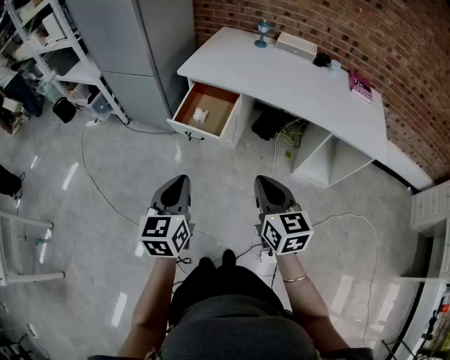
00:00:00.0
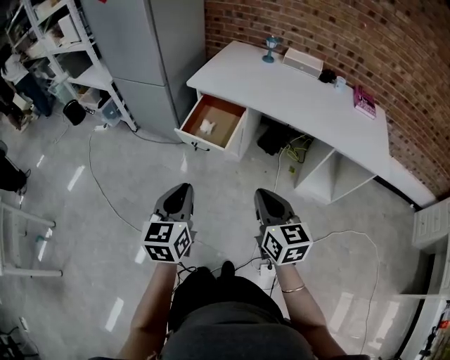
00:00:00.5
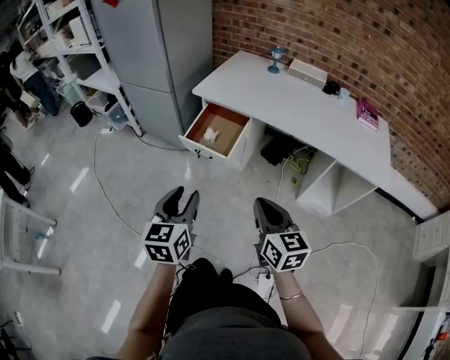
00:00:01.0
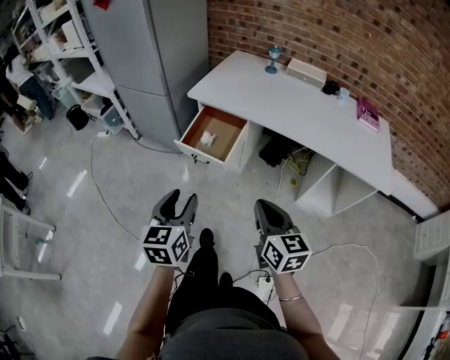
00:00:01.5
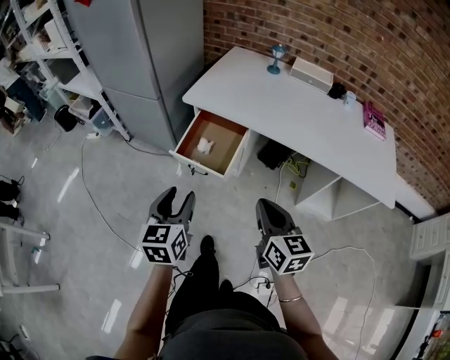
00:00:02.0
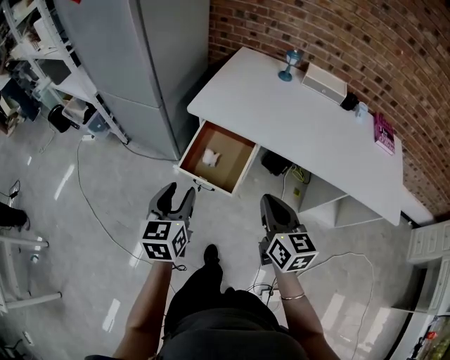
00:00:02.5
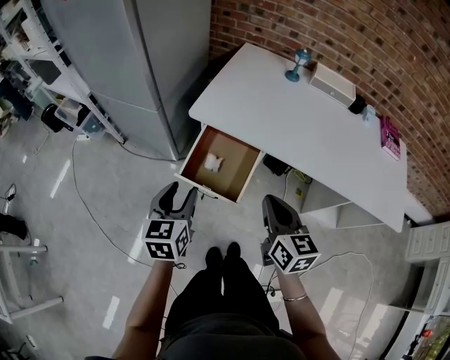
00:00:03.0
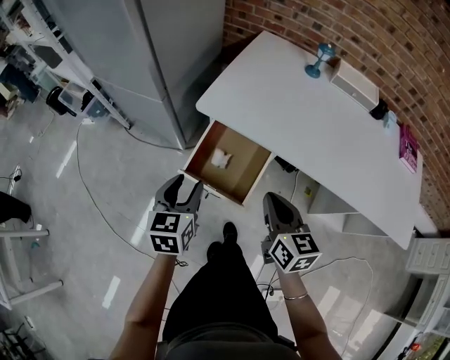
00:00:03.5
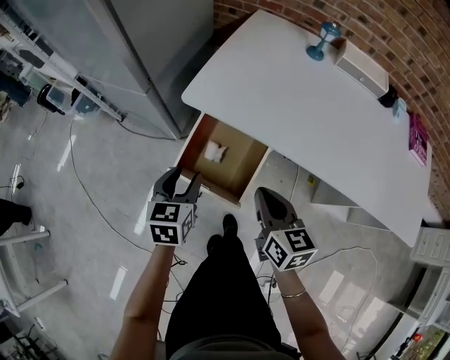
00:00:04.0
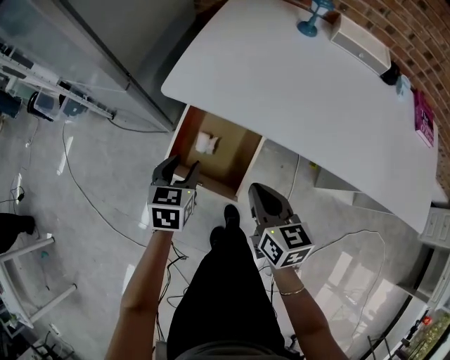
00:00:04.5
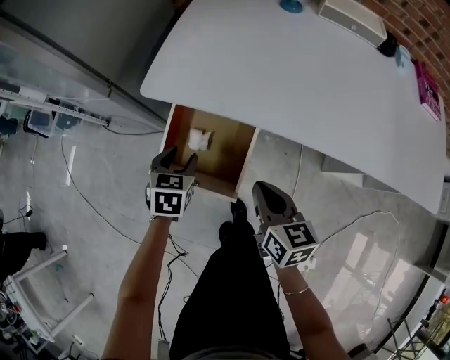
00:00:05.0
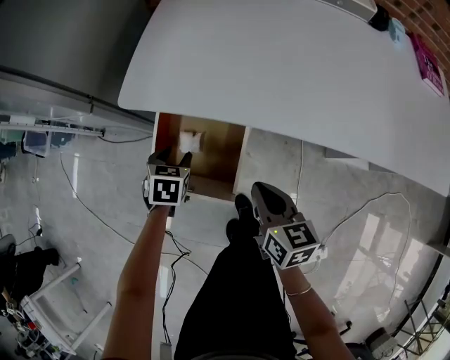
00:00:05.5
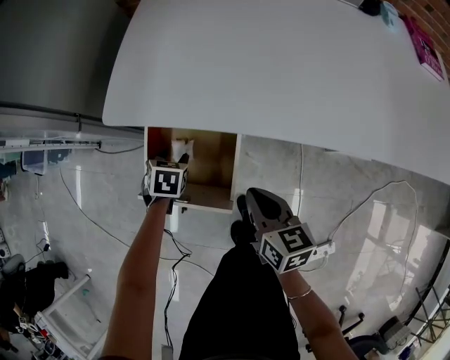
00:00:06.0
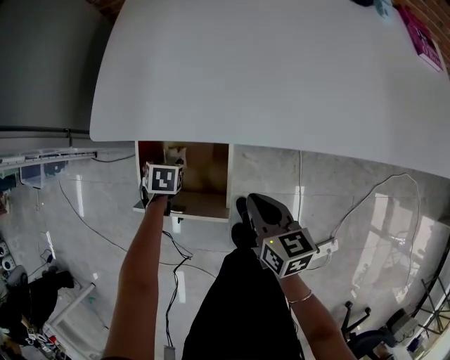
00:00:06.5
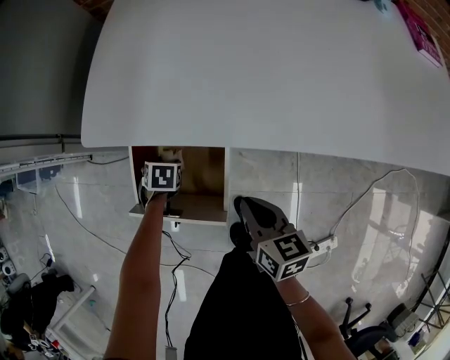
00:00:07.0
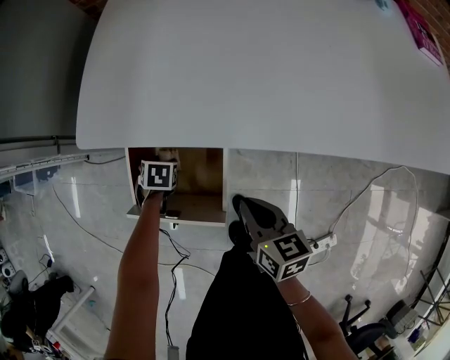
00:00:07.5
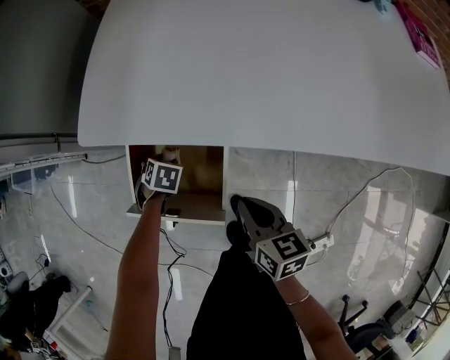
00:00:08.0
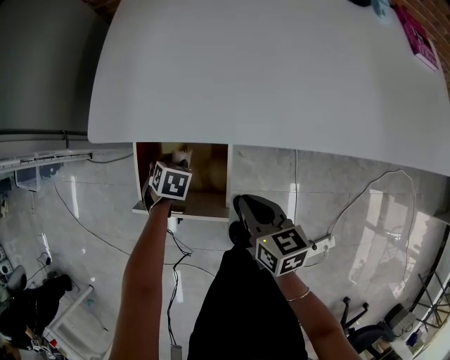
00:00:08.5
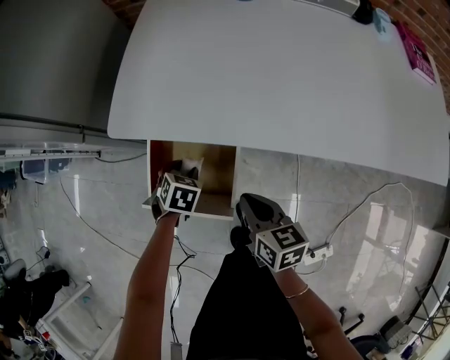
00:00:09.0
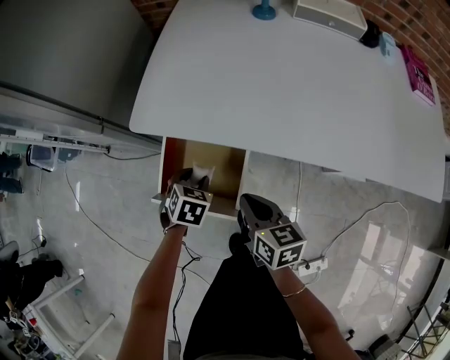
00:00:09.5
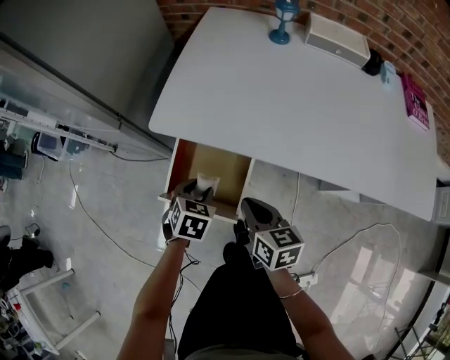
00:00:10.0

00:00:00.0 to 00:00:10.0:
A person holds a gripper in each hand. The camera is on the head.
00:00:00.0 to 00:00:02.0: The grippers both shift forward by approximately 10 cm. The left gripper opens.
00:00:02.0 to 00:00:04.0: The right gripper heads forward, covering roughly 25 cm, while the left gripper travels forward and downward by approximately 30 cm.
00:00:04.0 to 00:00:06.0: The left gripper moves downward and forward, approximately 25 cm, and tilts its fingers some 30 degrees downward; the right gripper goes some 15 cm downward.
00:00:06.0 to 00:00:08.0: The left gripper moves downward, some 10 cm.
00:00:08.0 to 00:00:10.0: The right gripper heads upward, covering about 10 cm. Meanwhile the left gripper moves upward, some 20 cm, and changes its angle by roughly 20 degrees.

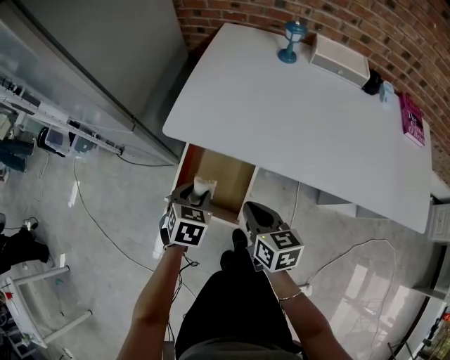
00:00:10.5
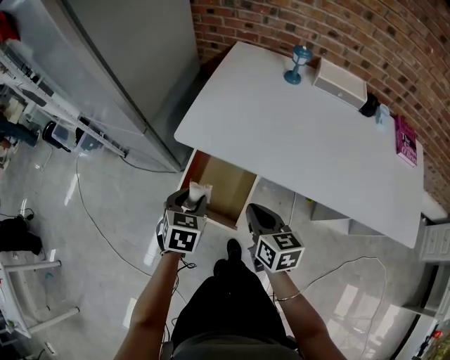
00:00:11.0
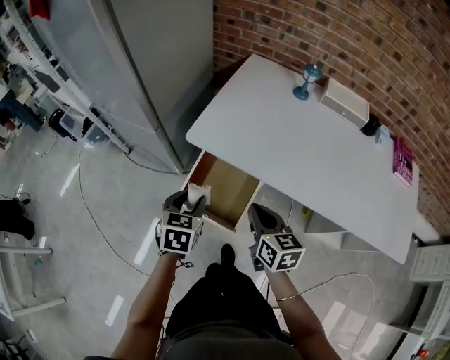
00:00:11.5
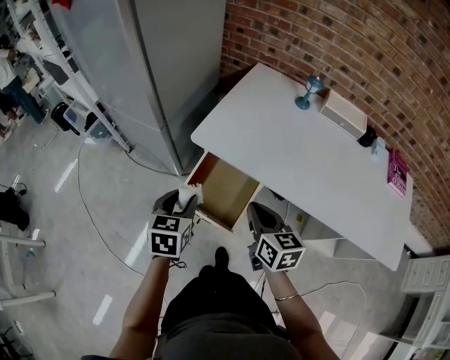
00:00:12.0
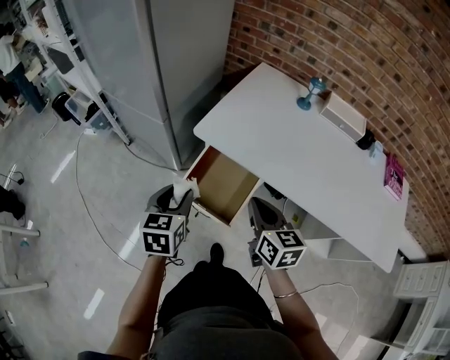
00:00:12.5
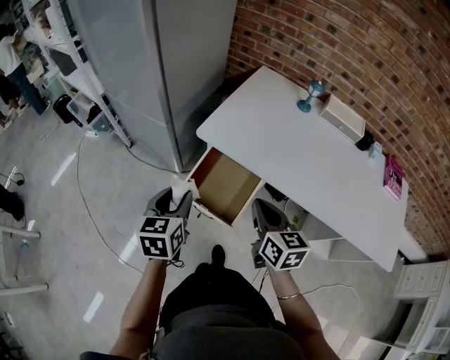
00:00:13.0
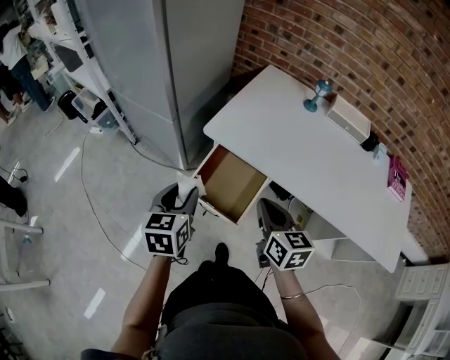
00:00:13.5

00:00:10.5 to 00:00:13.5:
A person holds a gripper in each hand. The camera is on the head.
00:00:10.5 to 00:00:12.0: The left gripper heads upward and to the left, covering some 15 cm, and swivels about 30 degrees, while the right gripper is displaced upward by some 10 cm.
00:00:12.0 to 00:00:13.5: The left gripper moves approximately 5 cm.

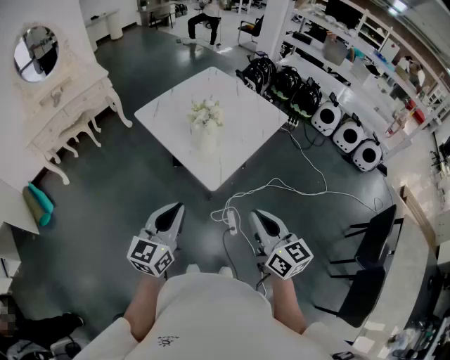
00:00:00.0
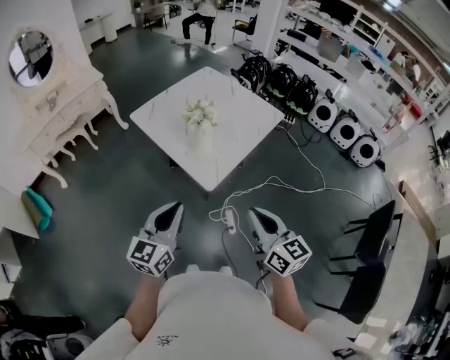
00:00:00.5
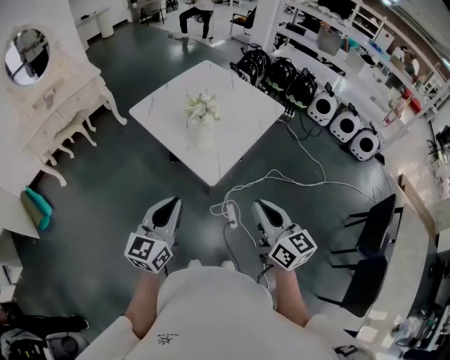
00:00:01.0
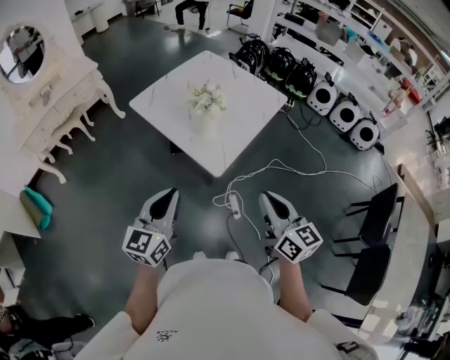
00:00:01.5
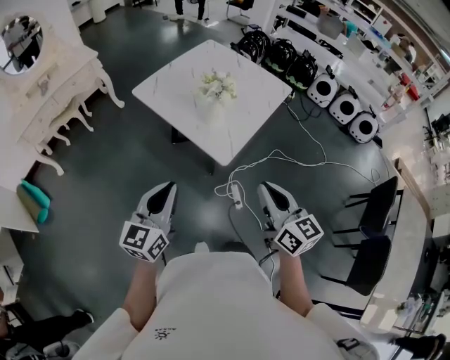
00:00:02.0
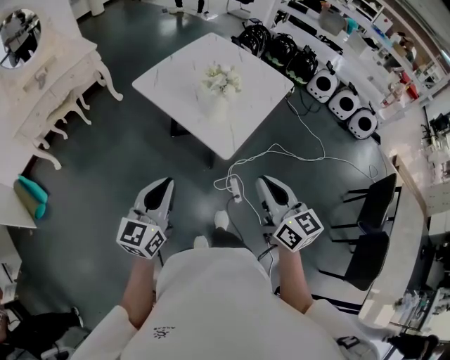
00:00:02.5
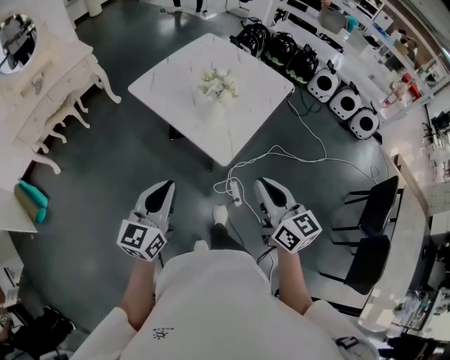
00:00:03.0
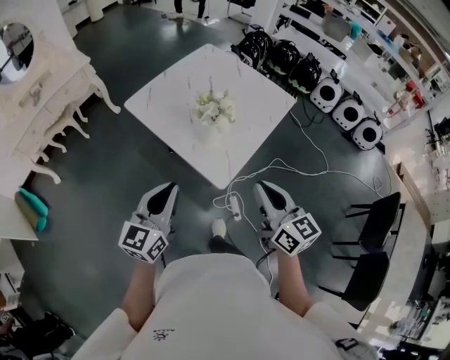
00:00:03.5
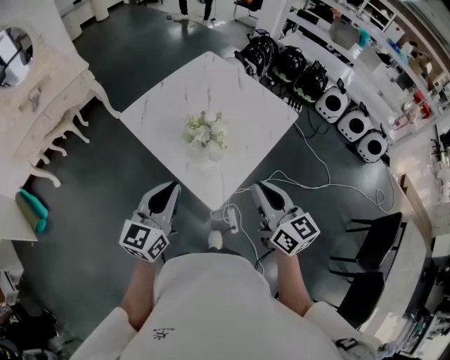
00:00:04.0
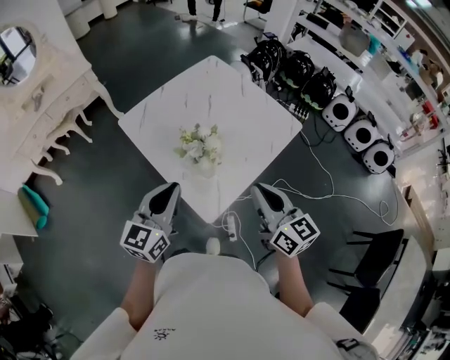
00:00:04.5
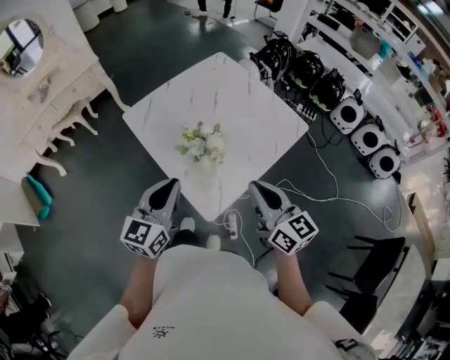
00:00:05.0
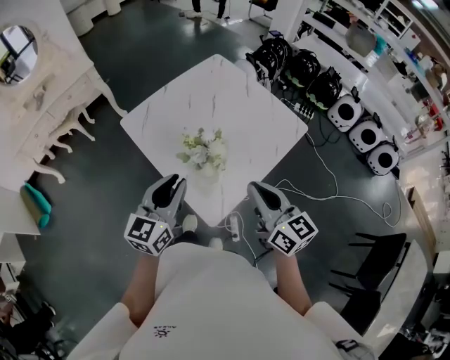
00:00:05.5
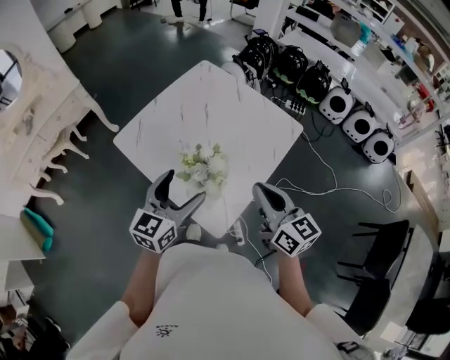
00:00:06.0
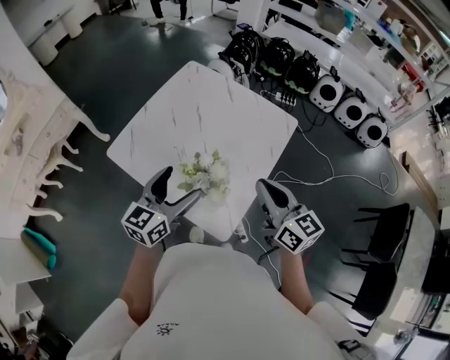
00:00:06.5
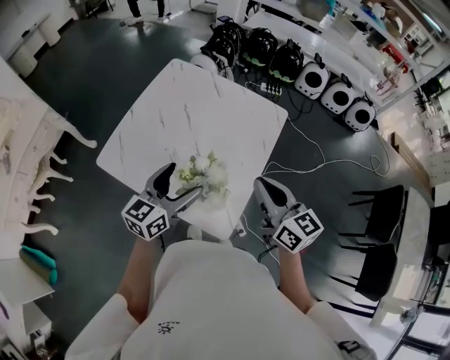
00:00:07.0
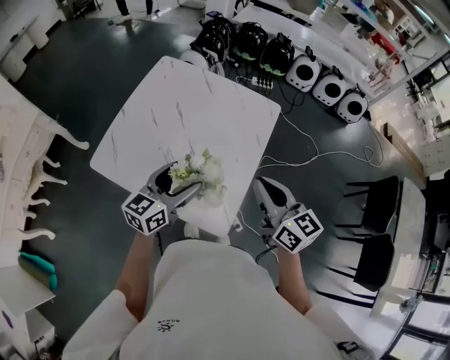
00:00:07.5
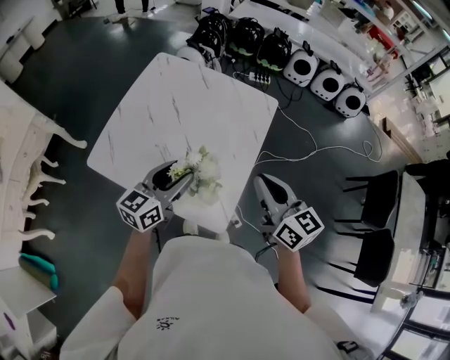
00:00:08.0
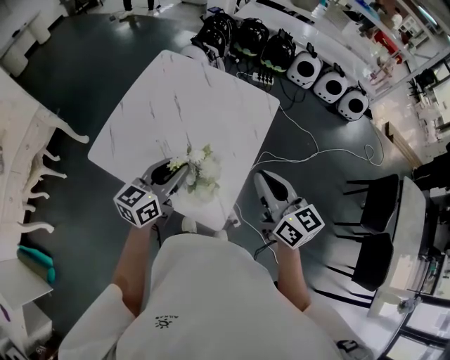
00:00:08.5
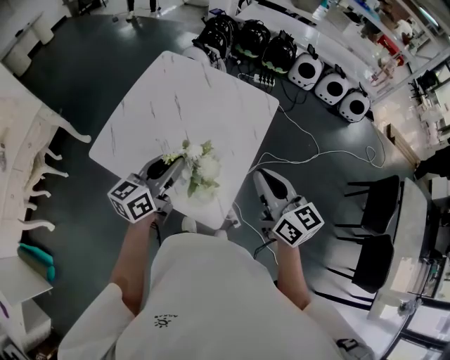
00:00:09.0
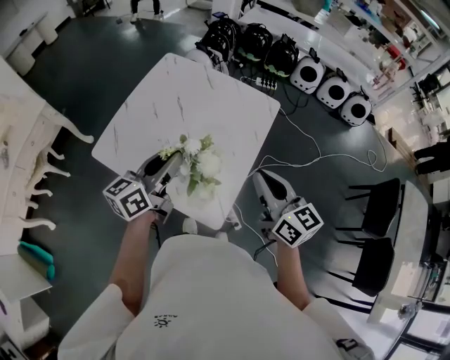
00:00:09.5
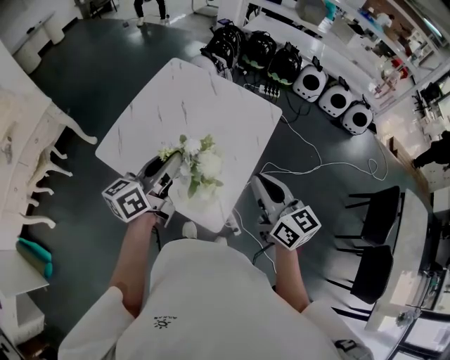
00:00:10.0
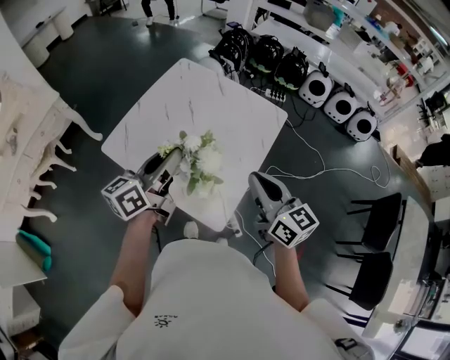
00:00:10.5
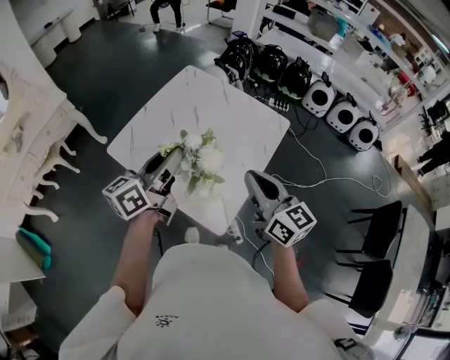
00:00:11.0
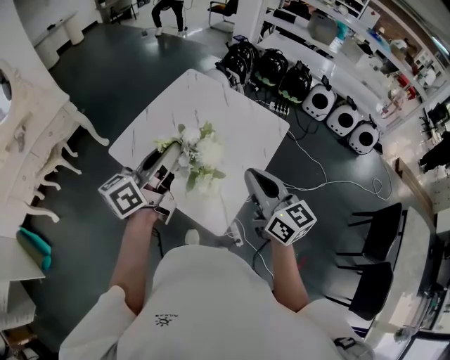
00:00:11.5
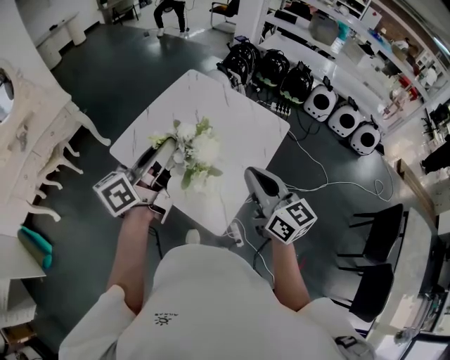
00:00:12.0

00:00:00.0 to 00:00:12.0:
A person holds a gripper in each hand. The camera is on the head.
00:00:00.0 to 00:00:02.0: The left gripper travels to the left by some 10 cm, while the right gripper is displaced to the left by approximately 5 cm.
00:00:02.0 to 00:00:04.0: The grippers both shift forward by about 20 cm.
00:00:04.0 to 00:00:06.0: The two grippers go approximately 15 cm forward. The left gripper opens.
00:00:06.0 to 00:00:08.0: The left gripper goes roughly 10 cm forward, changes its angle by approximately 30 degrees, and closes.
00:00:08.0 to 00:00:10.0: The left gripper goes about 10 cm upward, and rotates some 20 degrees.
00:00:10.0 to 00:00:12.0: The right gripper shifts by approximately 5 cm, while the left gripper moves upward, some 10 cm.

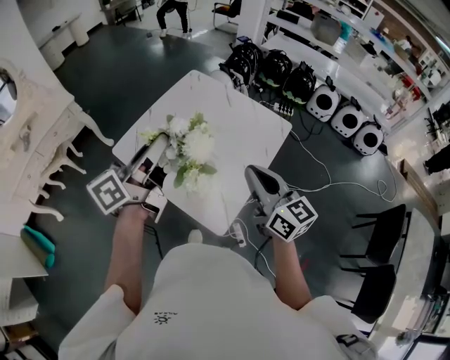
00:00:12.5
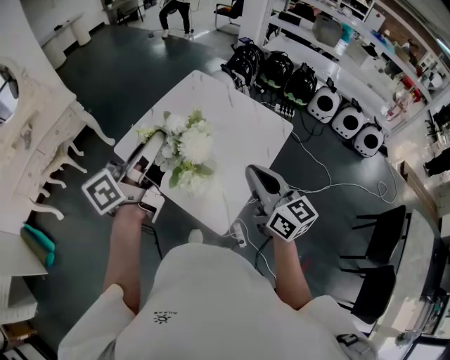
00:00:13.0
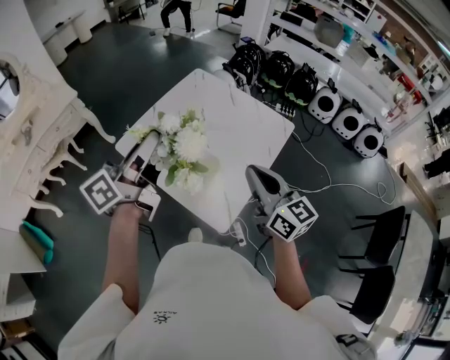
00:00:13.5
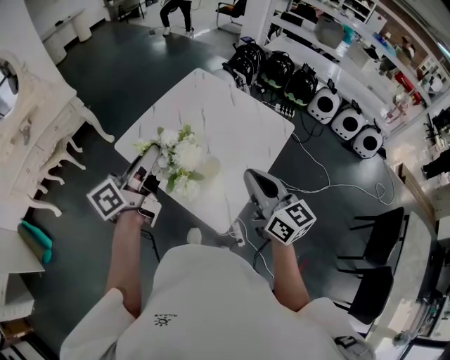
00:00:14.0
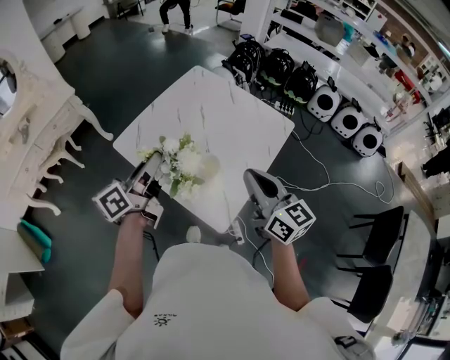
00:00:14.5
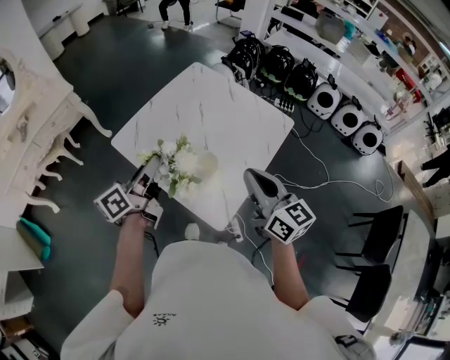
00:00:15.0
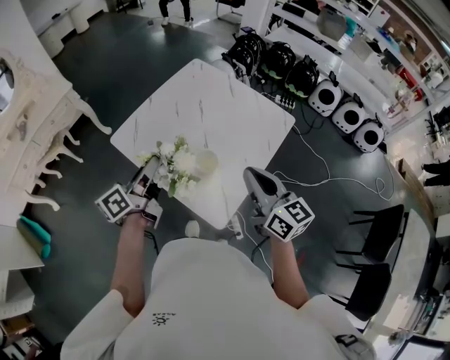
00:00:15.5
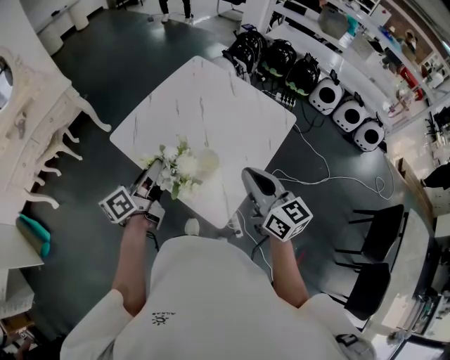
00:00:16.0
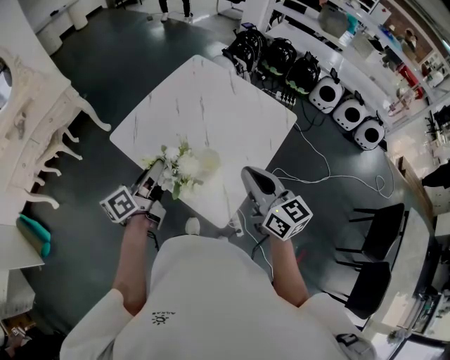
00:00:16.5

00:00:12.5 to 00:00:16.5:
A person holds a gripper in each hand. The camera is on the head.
00:00:12.5 to 00:00:14.5: The left gripper travels downward and to the left by roughly 10 cm.
00:00:14.5 to 00:00:16.5: The left gripper moves downward, some 10 cm.
